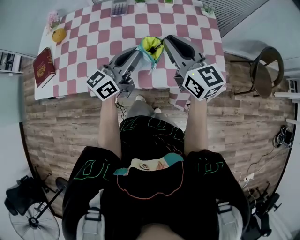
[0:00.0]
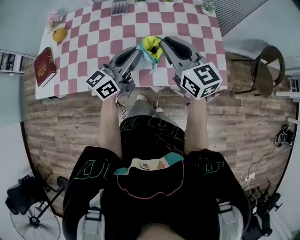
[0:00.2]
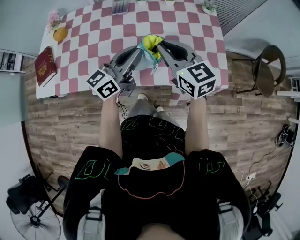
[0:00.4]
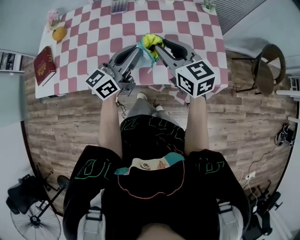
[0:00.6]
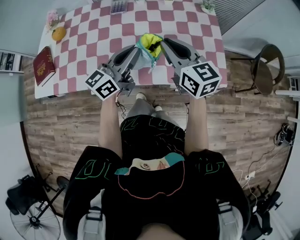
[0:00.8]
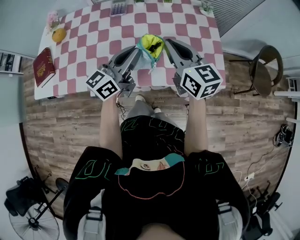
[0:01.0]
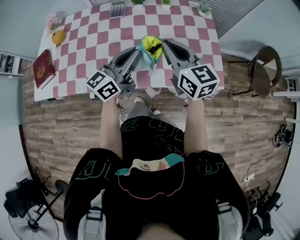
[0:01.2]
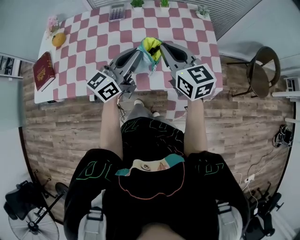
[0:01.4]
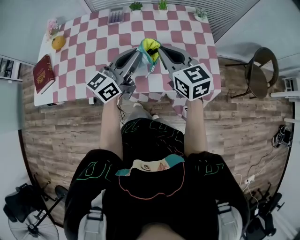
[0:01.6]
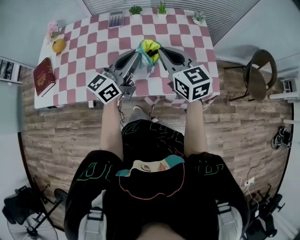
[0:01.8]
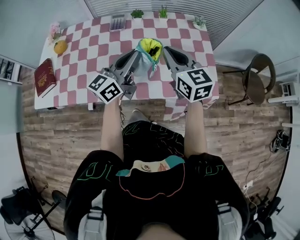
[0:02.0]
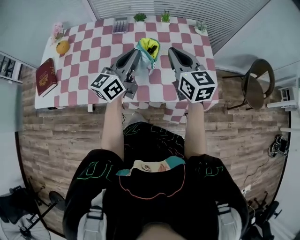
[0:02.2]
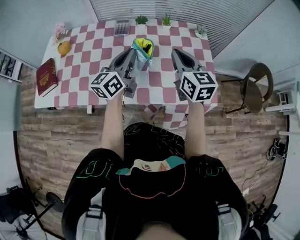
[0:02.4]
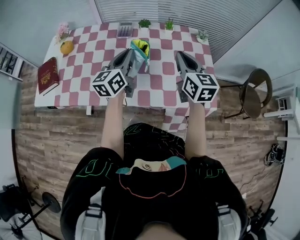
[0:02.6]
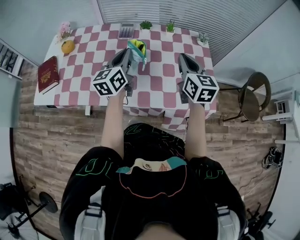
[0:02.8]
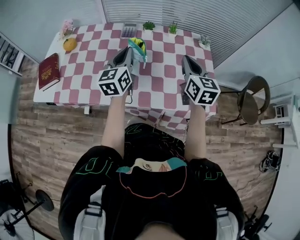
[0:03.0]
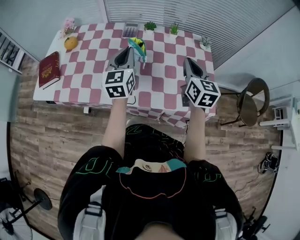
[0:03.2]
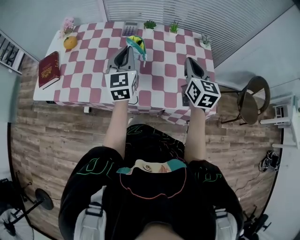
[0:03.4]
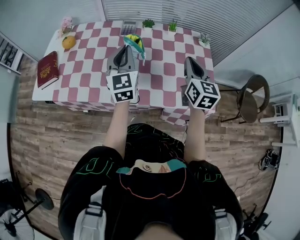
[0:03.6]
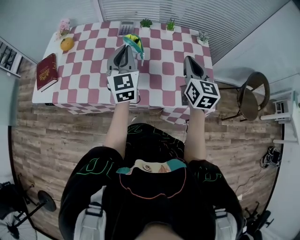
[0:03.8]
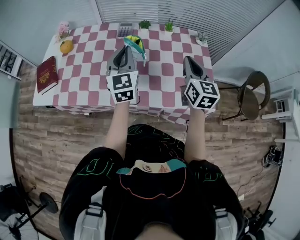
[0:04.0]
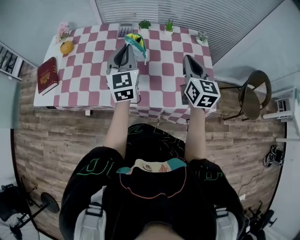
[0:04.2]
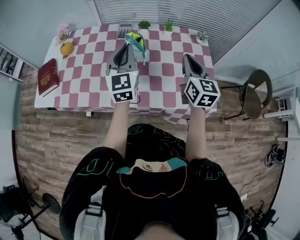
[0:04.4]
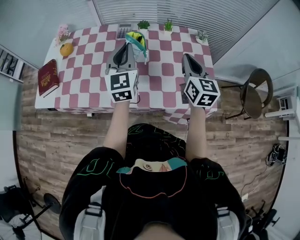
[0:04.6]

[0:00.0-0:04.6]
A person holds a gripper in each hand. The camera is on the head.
0:00.0 to 0:01.6: The grippers stay close to where they were, moving slightly.
0:01.6 to 0:03.0: The right gripper shifts about 10 cm to the right and forward. Meanwhile the left gripper travels to the left and forward by approximately 10 cm, and turns by some 40 degrees.
0:03.0 to 0:04.6: The left gripper changes its angle by roughly 20 degrees.

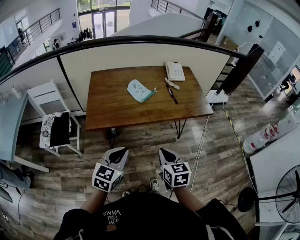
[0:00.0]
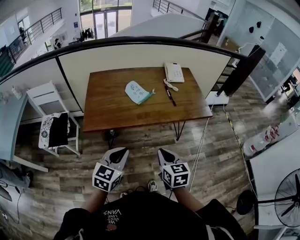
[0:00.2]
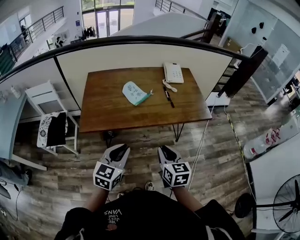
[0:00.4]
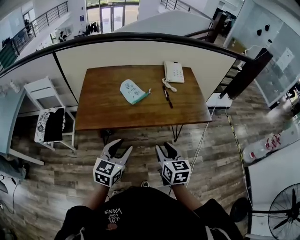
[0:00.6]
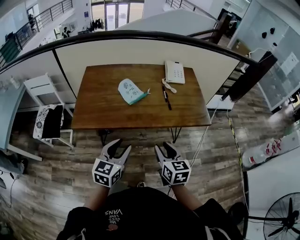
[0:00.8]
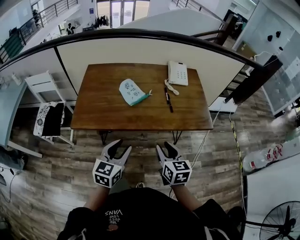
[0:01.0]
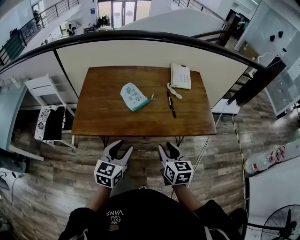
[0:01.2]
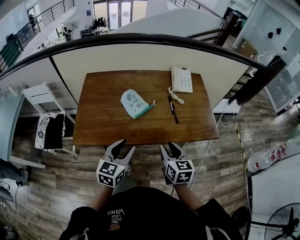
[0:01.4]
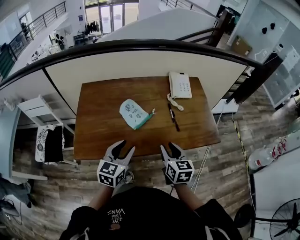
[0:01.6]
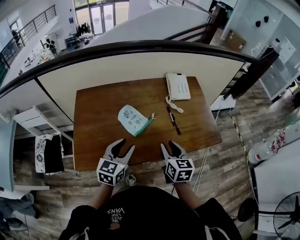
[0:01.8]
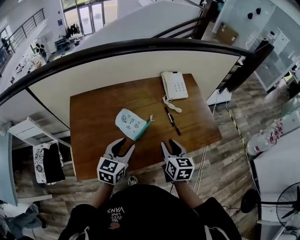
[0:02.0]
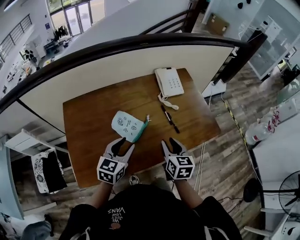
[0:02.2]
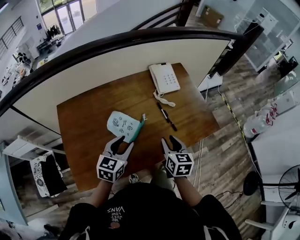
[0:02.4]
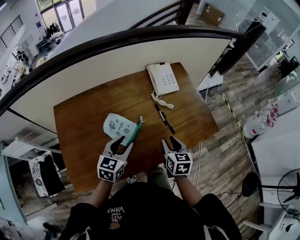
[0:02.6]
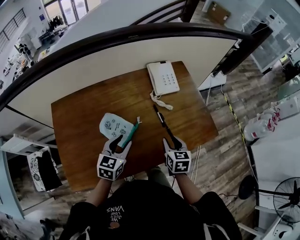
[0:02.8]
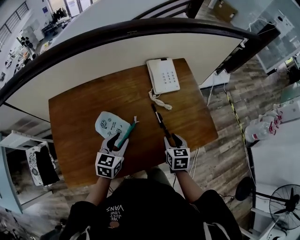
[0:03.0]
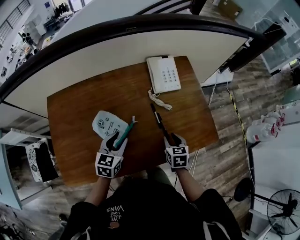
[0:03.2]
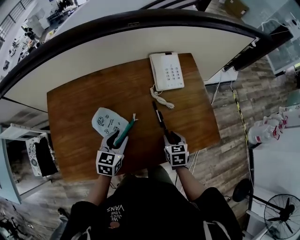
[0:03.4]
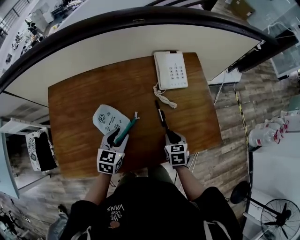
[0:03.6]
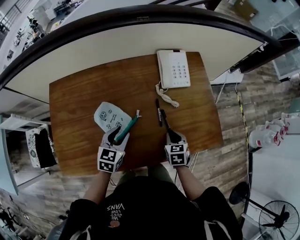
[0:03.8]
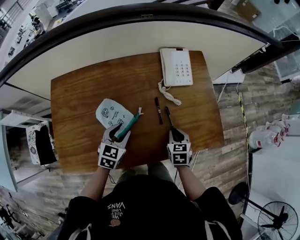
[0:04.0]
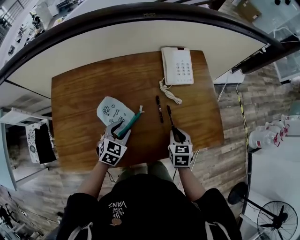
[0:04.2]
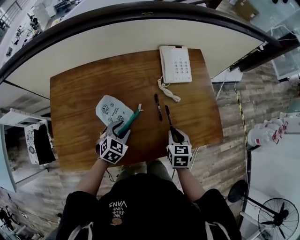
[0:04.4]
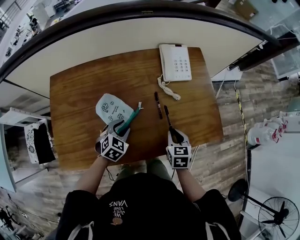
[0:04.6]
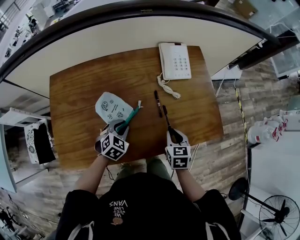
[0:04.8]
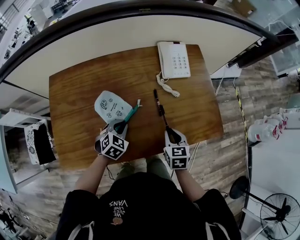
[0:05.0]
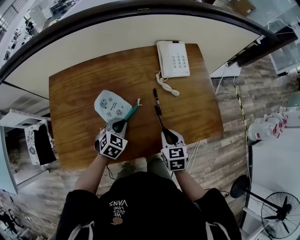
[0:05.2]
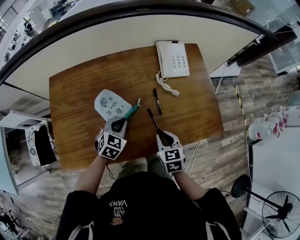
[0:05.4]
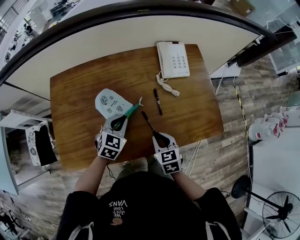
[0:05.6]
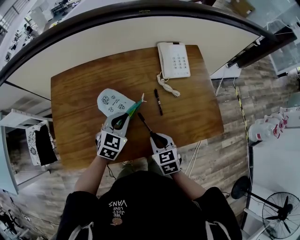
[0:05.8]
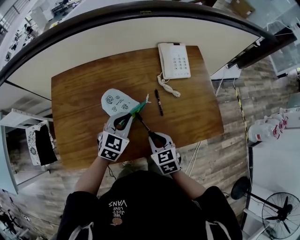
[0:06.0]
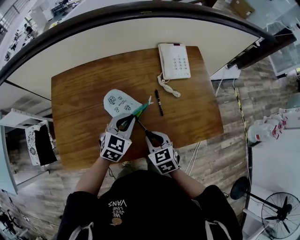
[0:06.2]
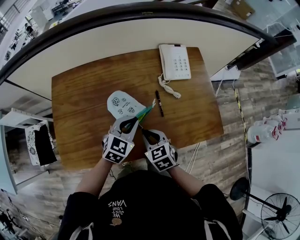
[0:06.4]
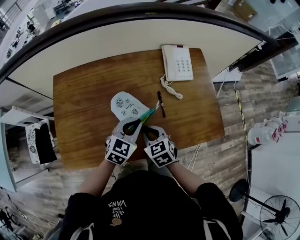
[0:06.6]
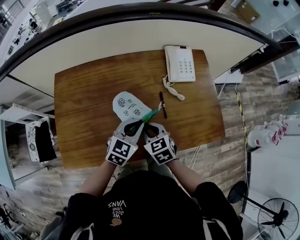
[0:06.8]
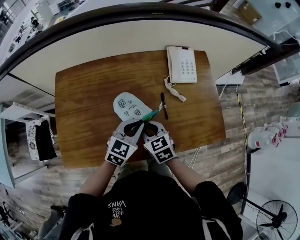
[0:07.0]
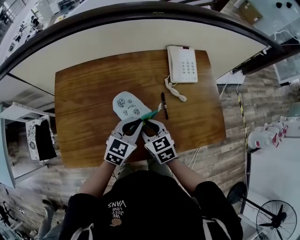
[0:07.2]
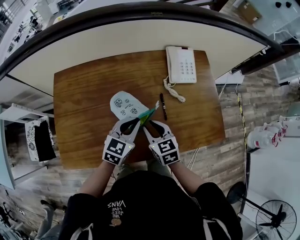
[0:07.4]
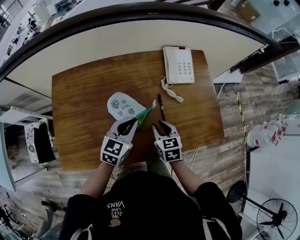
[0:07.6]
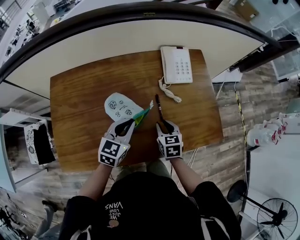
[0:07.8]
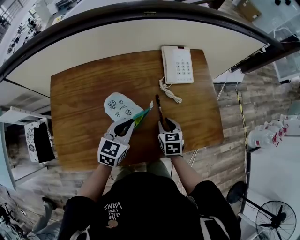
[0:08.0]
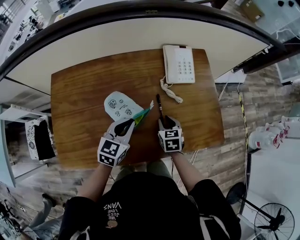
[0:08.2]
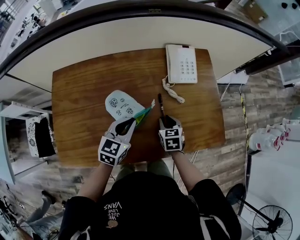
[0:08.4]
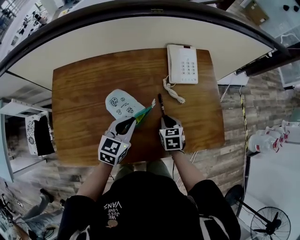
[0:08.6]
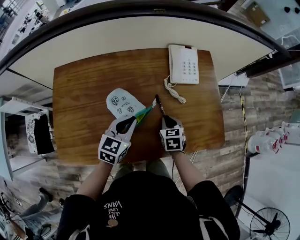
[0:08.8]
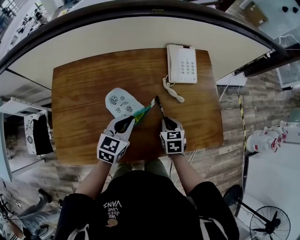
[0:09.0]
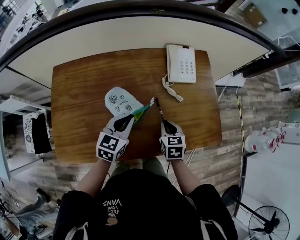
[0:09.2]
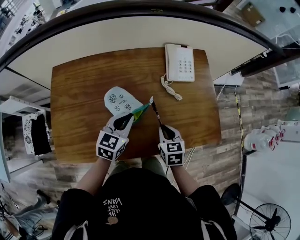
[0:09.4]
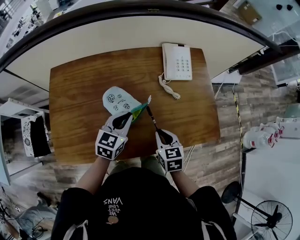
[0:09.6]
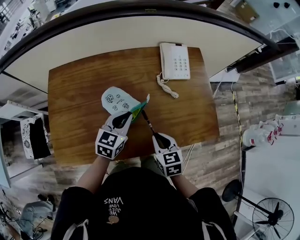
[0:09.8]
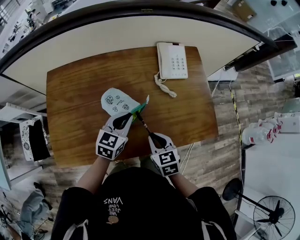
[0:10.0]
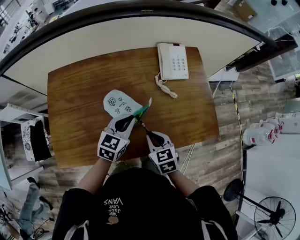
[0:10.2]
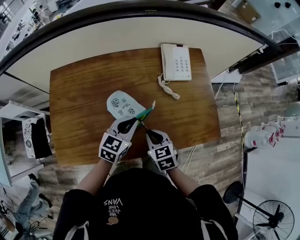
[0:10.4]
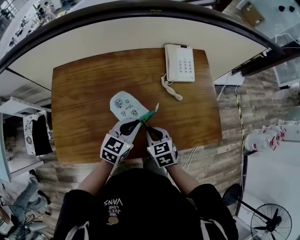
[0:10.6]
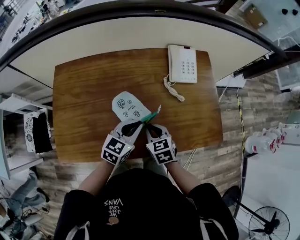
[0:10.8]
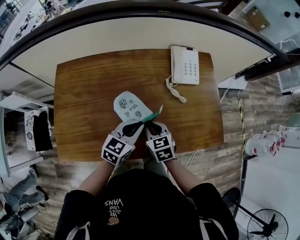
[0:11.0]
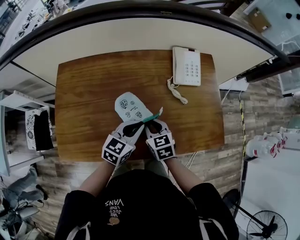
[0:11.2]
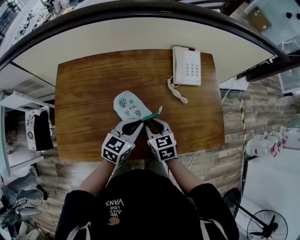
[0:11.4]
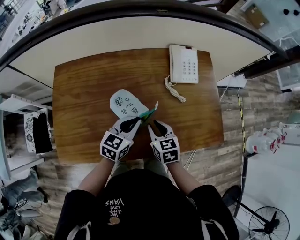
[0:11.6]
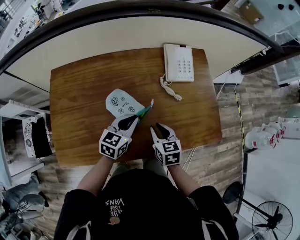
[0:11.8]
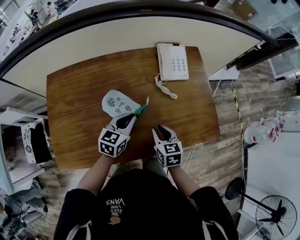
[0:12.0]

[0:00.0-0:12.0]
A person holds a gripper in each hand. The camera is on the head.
0:00.0 to 0:01.6: The two grippers go some 25 cm forward. The right gripper opens its fingers, while the left gripper opens up.
0:01.6 to 0:03.0: Both grippers travel together forward and downward, about 20 cm. The right gripper turns by about 20 degrees.
0:03.0 to 0:04.4: The left gripper travels downward by roughly 10 cm, and rotates roughly 30 degrees.
0:04.4 to 0:06.0: The left gripper shifts some 10 cm upward, and closes its fingers. Meanwhile the right gripper moves to the left and backward, some 10 cm, and changes its angle by roughly 20 degrees.
0:06.0 to 0:07.6: The right gripper goes roughly 10 cm forward, and goes to the left and returns, approximately 5 cm each way.
0:07.6 to 0:09.0: The right gripper shifts by some 5 cm.
0:09.0 to 0:10.4: The right gripper travels backward and to the left by about 10 cm.
0:10.4 to 0:12.0: The right gripper moves approximately 5 cm.

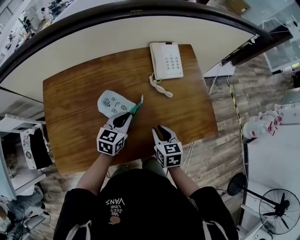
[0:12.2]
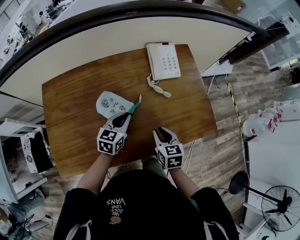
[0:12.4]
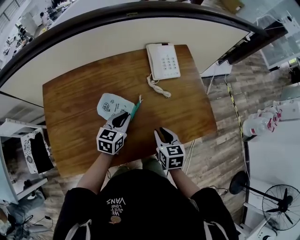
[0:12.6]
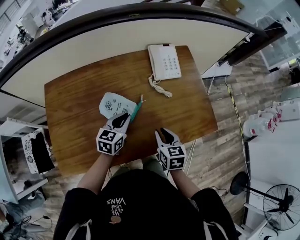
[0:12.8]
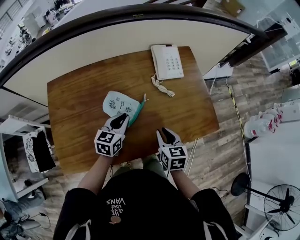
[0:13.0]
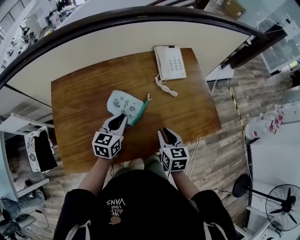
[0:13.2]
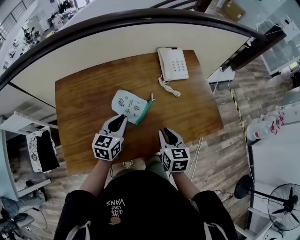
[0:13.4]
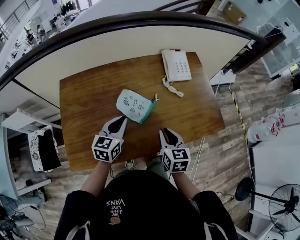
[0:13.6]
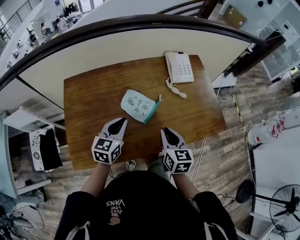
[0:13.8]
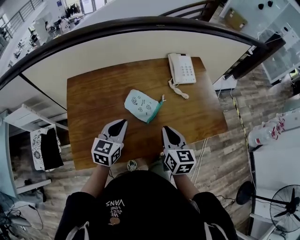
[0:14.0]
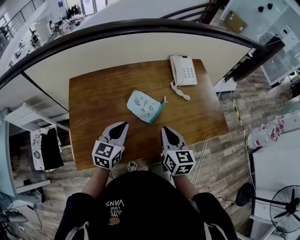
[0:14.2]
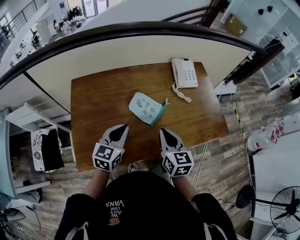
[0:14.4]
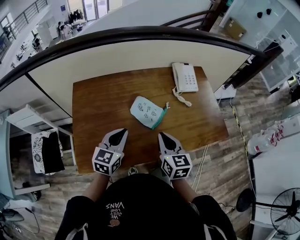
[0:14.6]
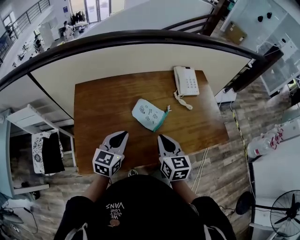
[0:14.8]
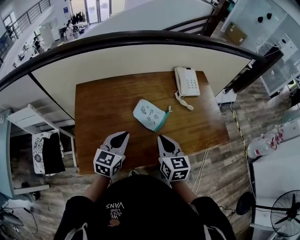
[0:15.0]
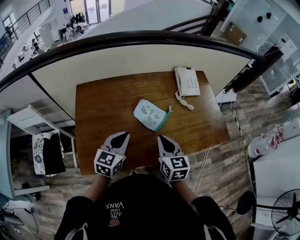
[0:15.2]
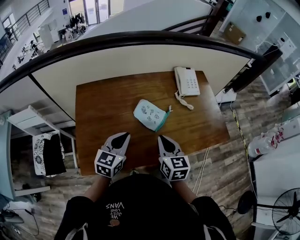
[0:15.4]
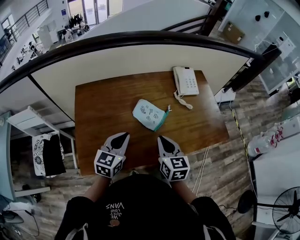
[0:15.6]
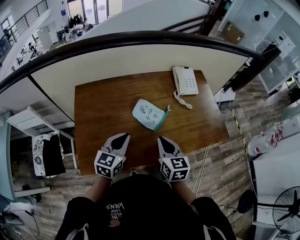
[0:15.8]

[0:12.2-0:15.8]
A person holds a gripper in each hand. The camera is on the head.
0:12.2 to 0:14.0: The right gripper shifts approximately 15 cm upward, to the left and backward, and swivels some 20 degrees; the left gripper moves to the left, backward and upward, about 20 cm.
0:14.0 to 0:15.8: The left gripper changes place by some 5 cm; the right gripper goes some 5 cm to the left.

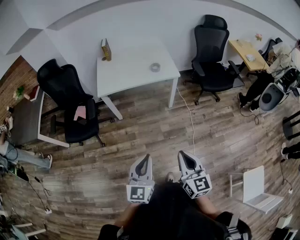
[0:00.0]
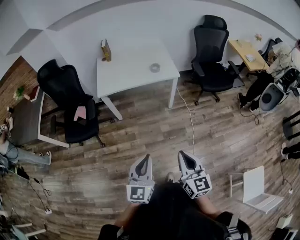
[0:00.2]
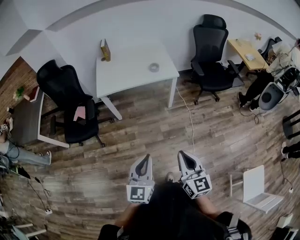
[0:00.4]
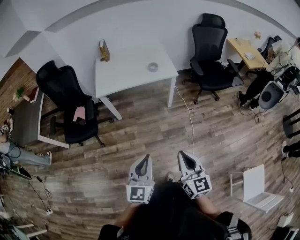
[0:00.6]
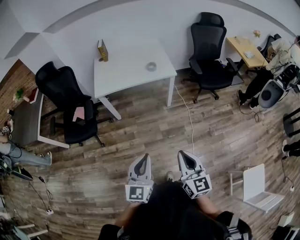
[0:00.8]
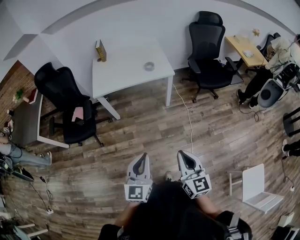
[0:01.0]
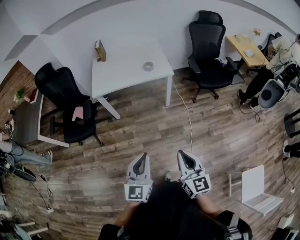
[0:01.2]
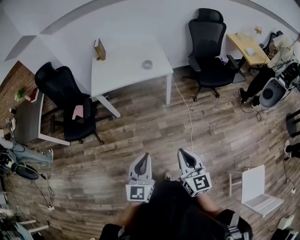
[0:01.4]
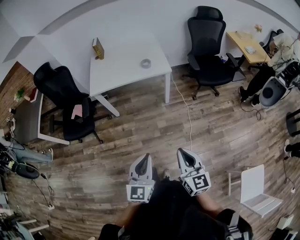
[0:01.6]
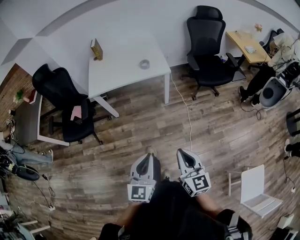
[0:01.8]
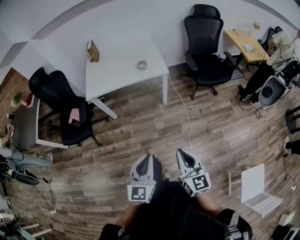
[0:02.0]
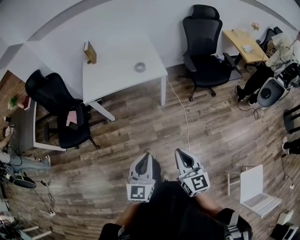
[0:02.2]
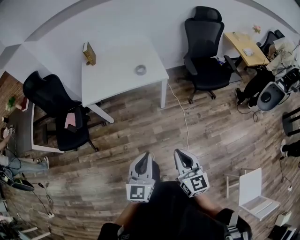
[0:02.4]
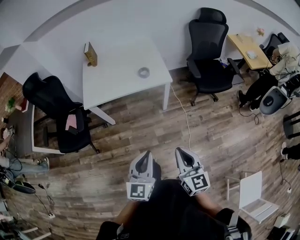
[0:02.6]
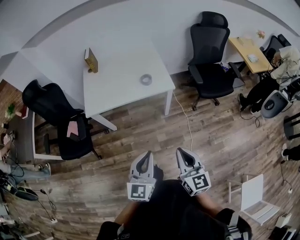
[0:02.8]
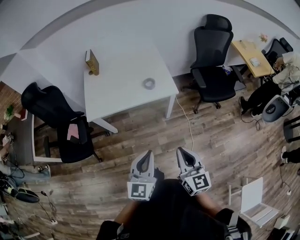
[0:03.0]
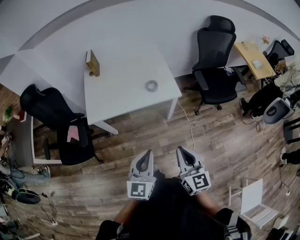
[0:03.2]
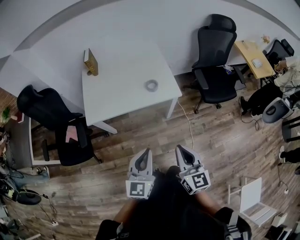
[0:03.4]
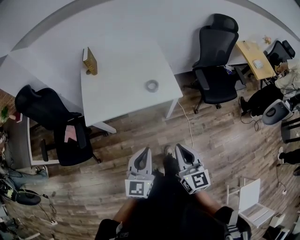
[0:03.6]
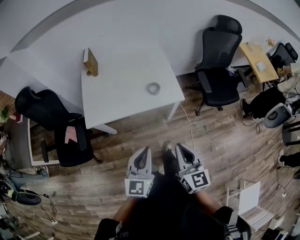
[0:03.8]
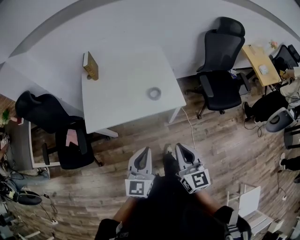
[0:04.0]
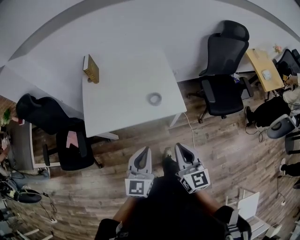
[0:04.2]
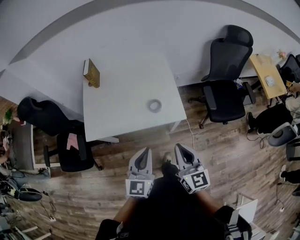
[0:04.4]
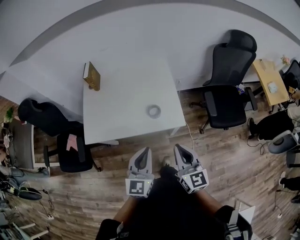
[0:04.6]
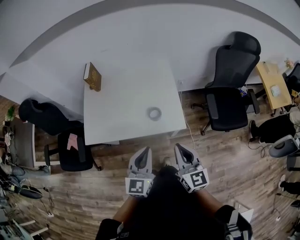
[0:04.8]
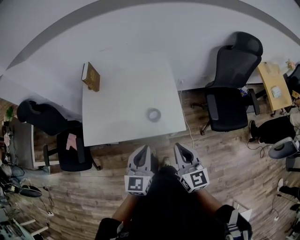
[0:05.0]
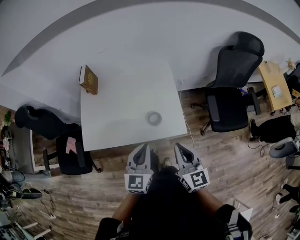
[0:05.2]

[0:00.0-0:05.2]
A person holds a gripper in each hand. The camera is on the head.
0:00.0 to 0:01.8: Both grippers move to the right, approximately 10 cm.
0:01.8 to 0:03.4: The two grippers go approximately 30 cm forward.
0:03.4 to 0:05.2: The grippers both shift forward by some 30 cm.
